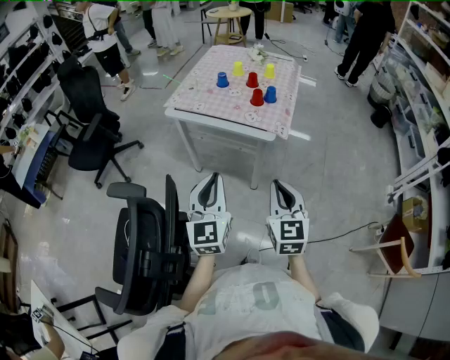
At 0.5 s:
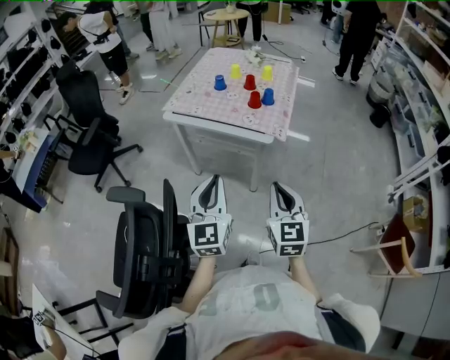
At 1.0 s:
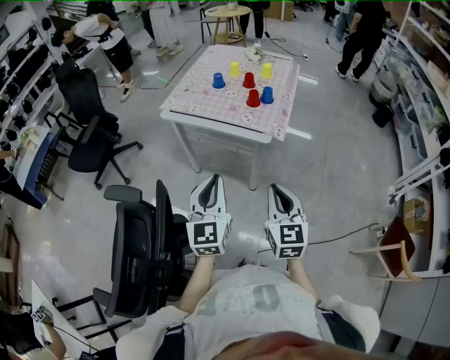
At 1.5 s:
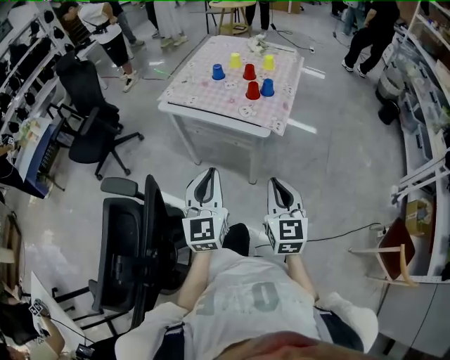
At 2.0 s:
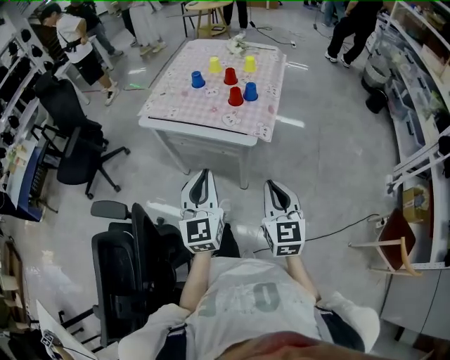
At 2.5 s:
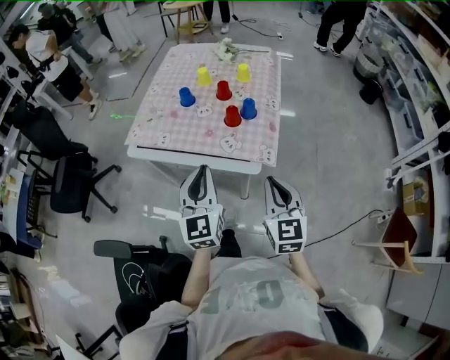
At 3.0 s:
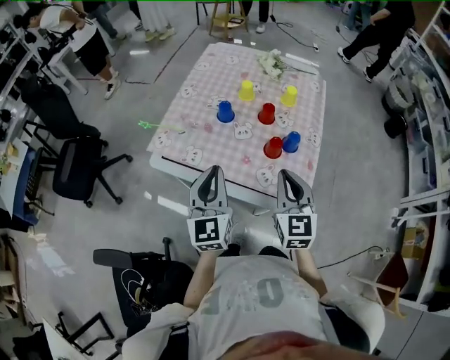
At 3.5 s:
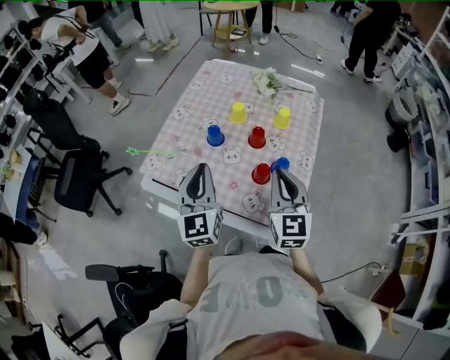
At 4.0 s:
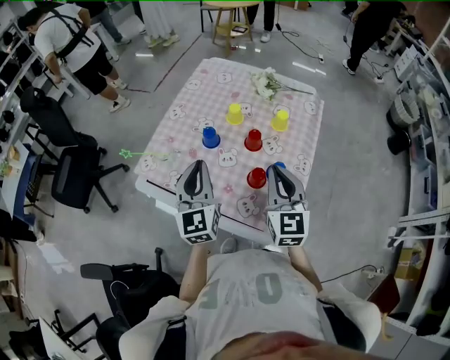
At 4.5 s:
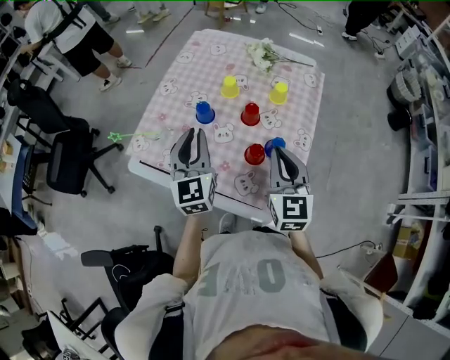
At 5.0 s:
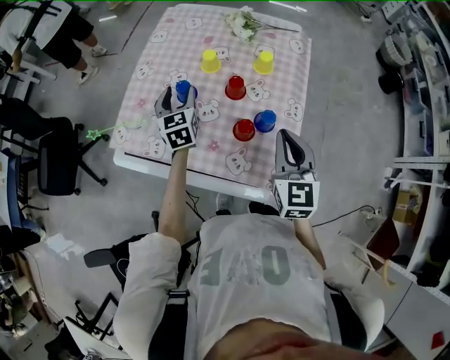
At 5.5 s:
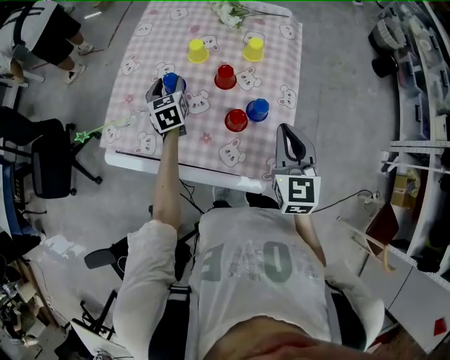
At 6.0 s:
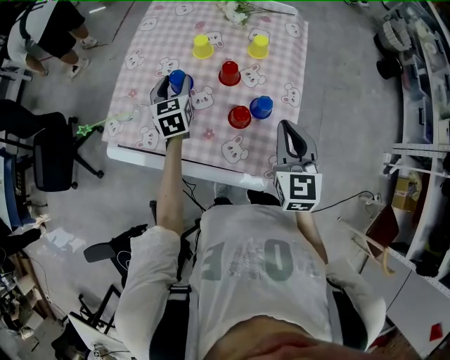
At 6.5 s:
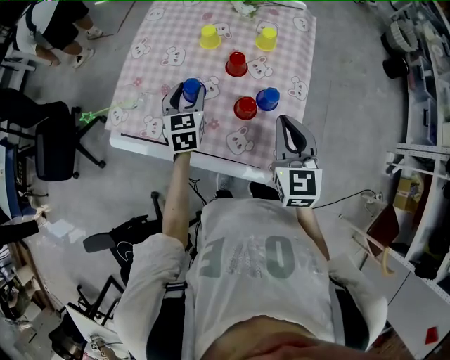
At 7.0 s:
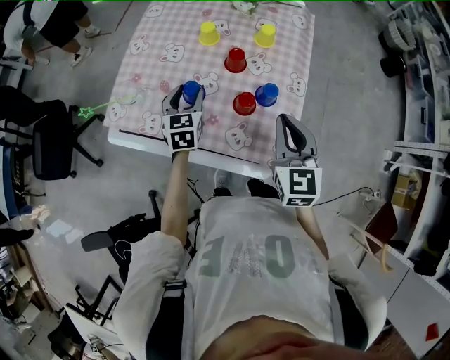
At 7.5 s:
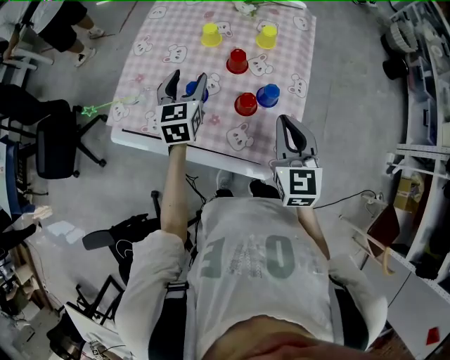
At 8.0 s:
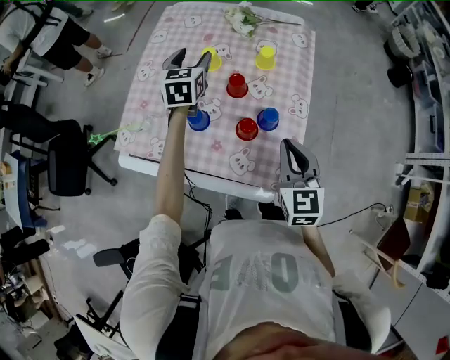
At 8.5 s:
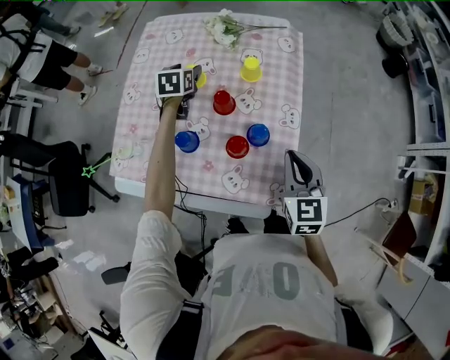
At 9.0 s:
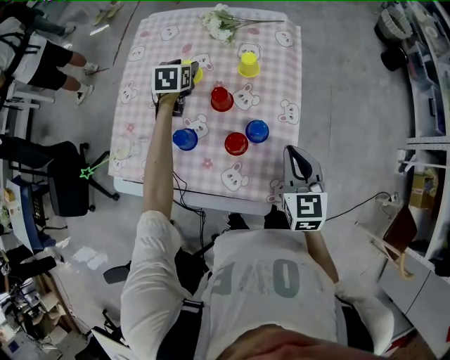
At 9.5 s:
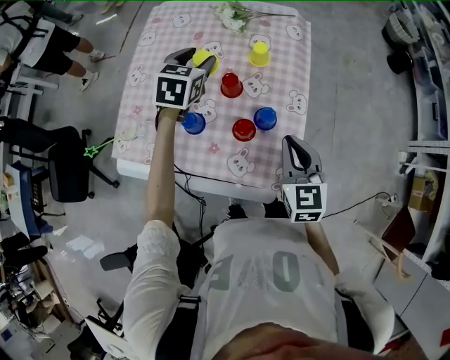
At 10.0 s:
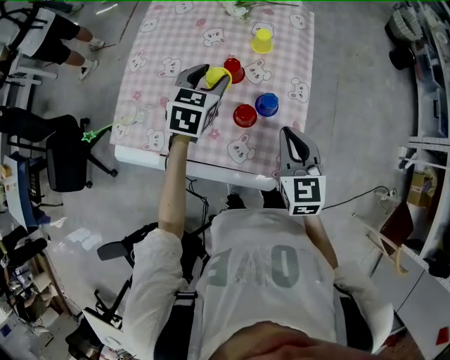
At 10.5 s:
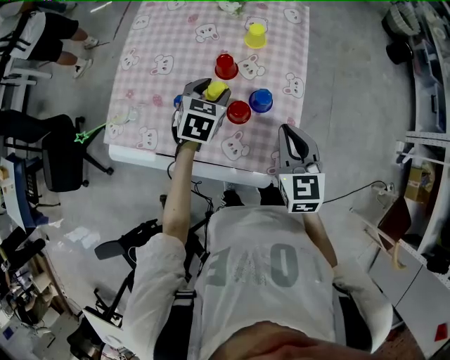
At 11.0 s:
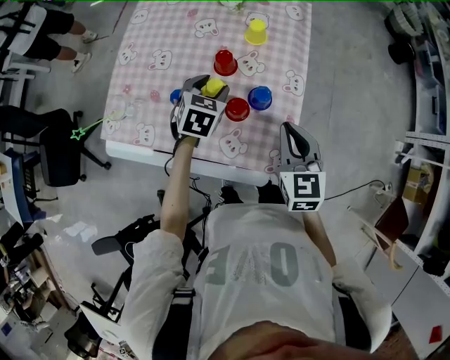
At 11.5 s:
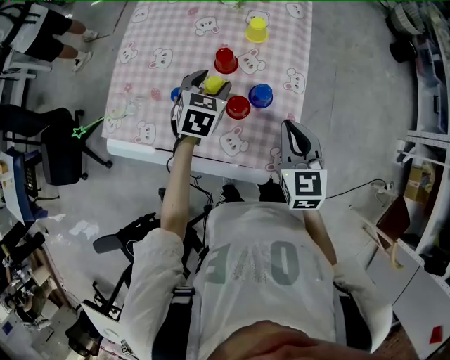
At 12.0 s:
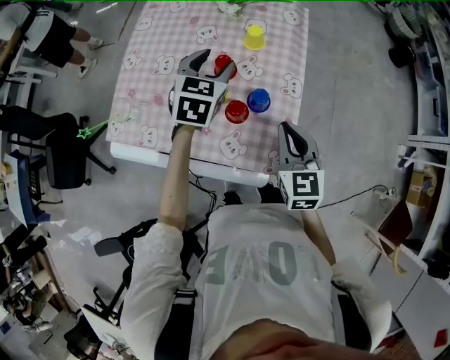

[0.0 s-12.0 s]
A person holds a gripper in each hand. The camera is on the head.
0.0 to 2.0 s: Both grippers move forward and to the right, about 10 cm.
2.0 to 4.0 s: Both grippers are carried forward, some 40 cm.
4.0 to 6.0 s: The right gripper moves to the right, some 5 cm. The left gripper travels forward and downward by roughly 20 cm, swivels some 30 degrees, and opens its fingers.
6.0 to 8.0 s: The left gripper travels forward, upward and to the right by some 10 cm.
8.0 to 10.0 s: The left gripper goes approximately 15 cm backward and to the right, and turns by about 20 degrees.
10.0 to 12.0 s: The left gripper moves some 10 cm downward and comes back.

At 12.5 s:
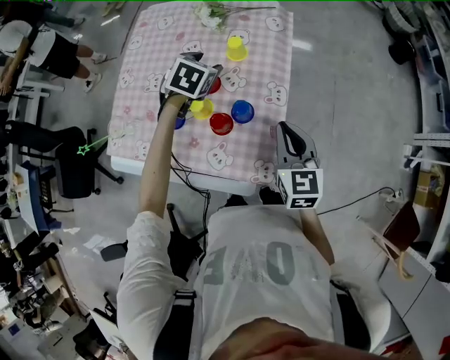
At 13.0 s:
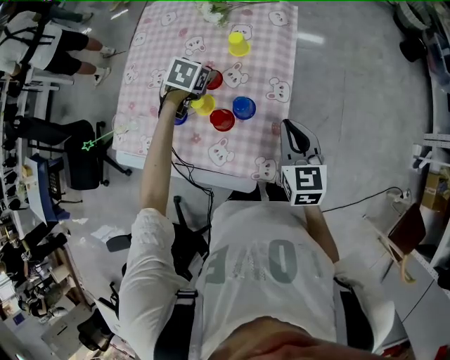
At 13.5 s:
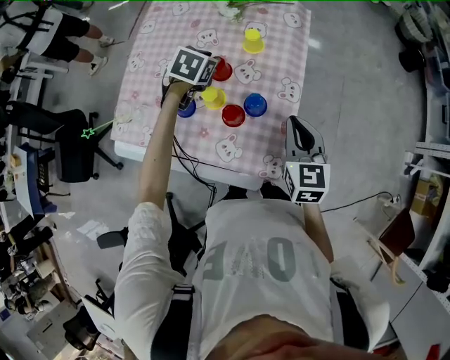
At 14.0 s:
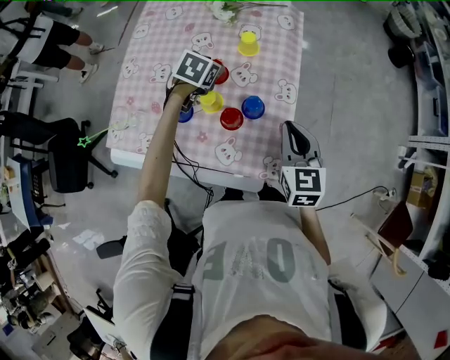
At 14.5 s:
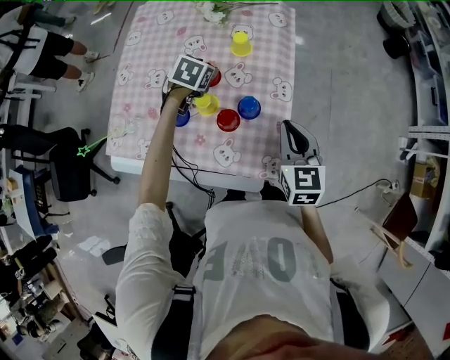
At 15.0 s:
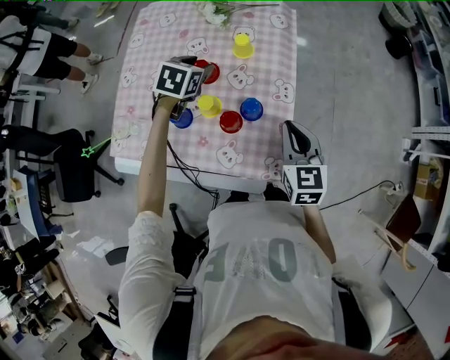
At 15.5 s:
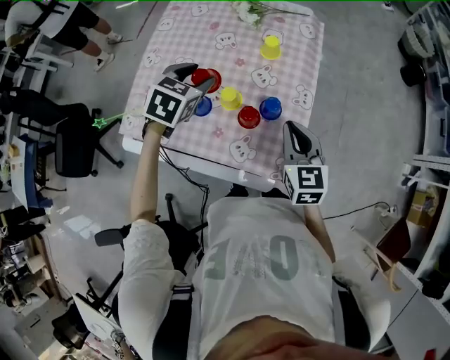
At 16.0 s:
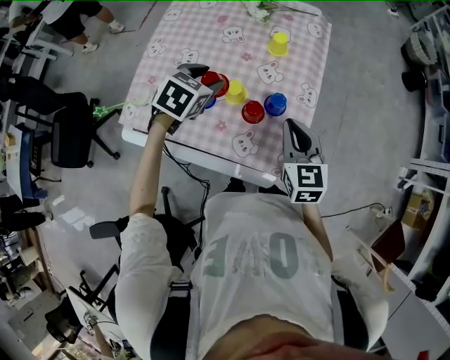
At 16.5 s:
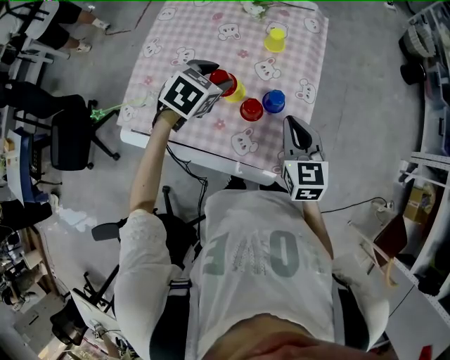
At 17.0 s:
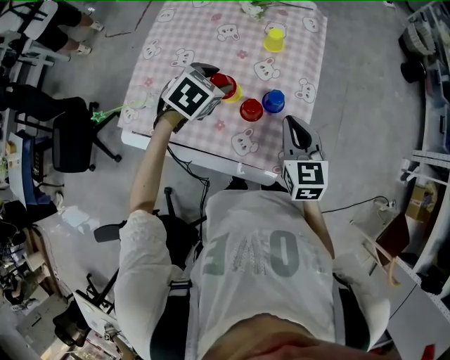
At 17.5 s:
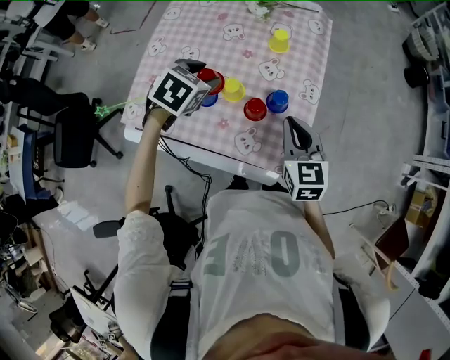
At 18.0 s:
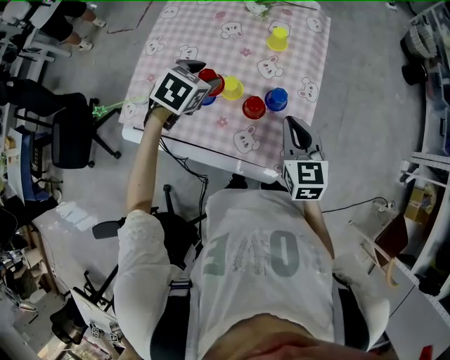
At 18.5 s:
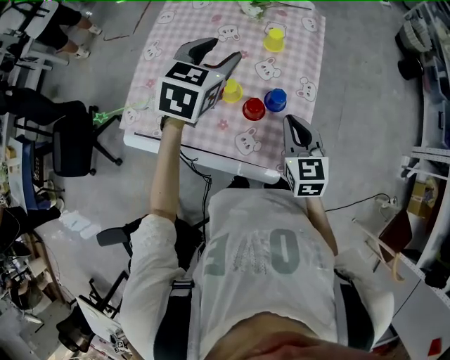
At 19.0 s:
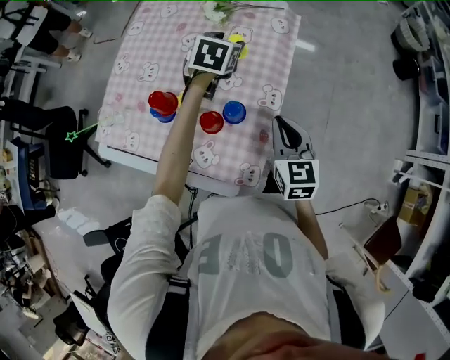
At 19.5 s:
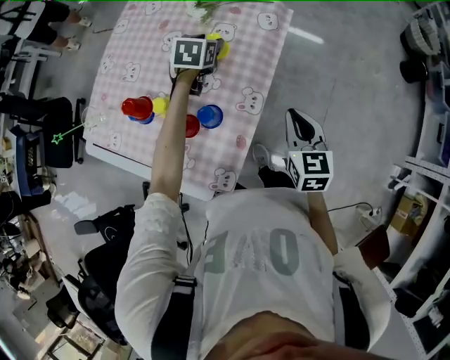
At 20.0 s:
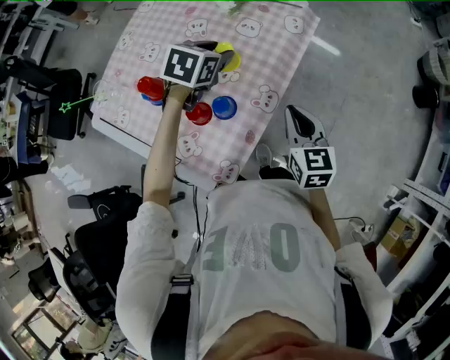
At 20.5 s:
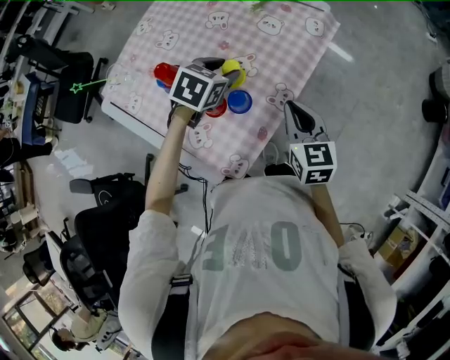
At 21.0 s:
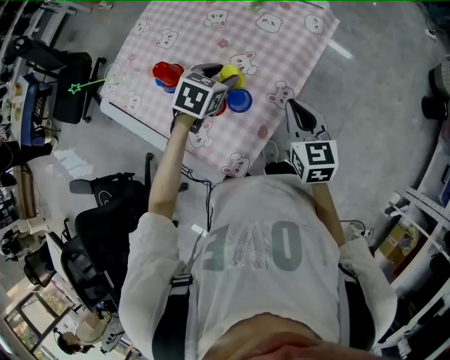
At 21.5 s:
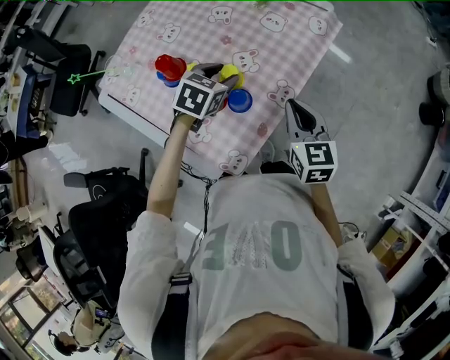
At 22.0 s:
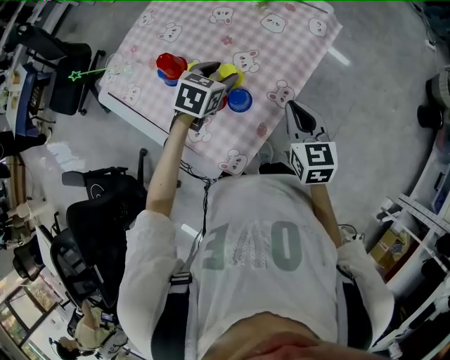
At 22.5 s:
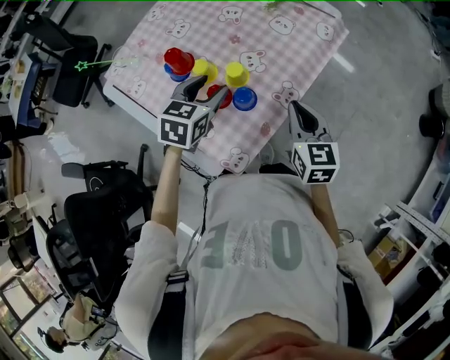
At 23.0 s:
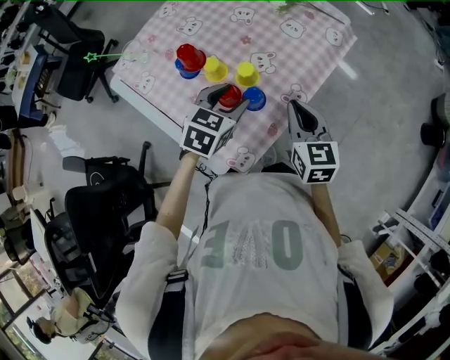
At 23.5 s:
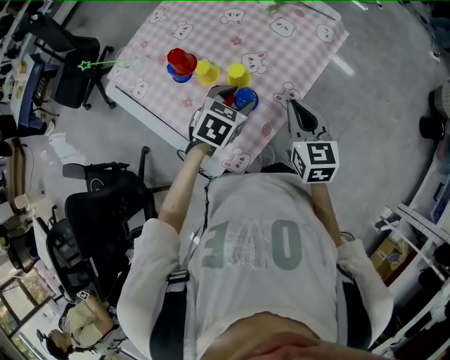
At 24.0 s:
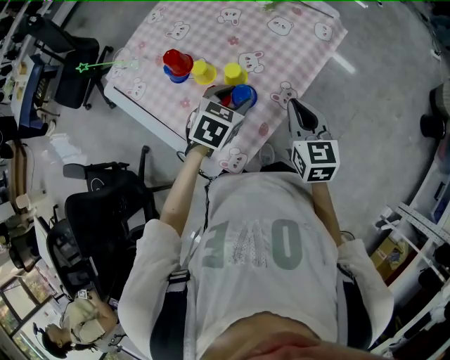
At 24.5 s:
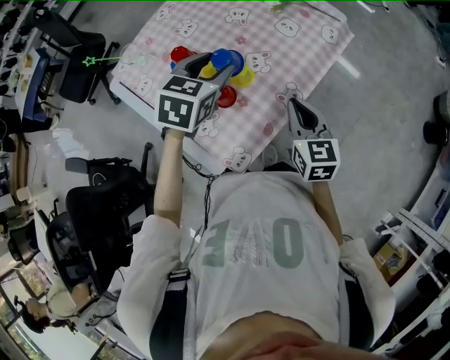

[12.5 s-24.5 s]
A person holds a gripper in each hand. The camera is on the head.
12.5 to 14.5 s: The left gripper travels downward by some 5 cm, and closes, then reopens.
14.5 to 16.5 s: The right gripper travels to the left by about 5 cm; the left gripper goes roughly 15 cm backward and upward.
16.5 to 18.5 s: The left gripper travels upward by approximately 10 cm, and rotates roughly 20 degrees.
18.5 to 20.5 s: The right gripper goes approximately 15 cm to the right and forward, and swivels approximately 20 degrees. Meanwhile the left gripper goes approximately 20 cm downward and to the right, and swivels approximately 30 degrees.
20.5 to 22.5 s: The left gripper is displaced backward by roughly 10 cm.
22.5 to 24.5 s: The left gripper is displaced upward by some 5 cm.

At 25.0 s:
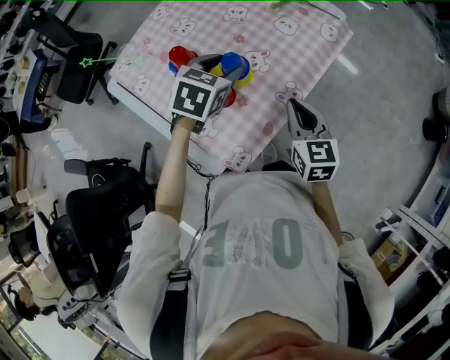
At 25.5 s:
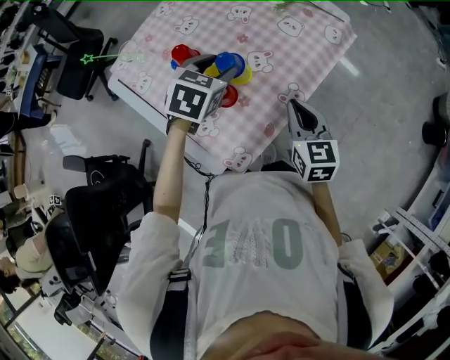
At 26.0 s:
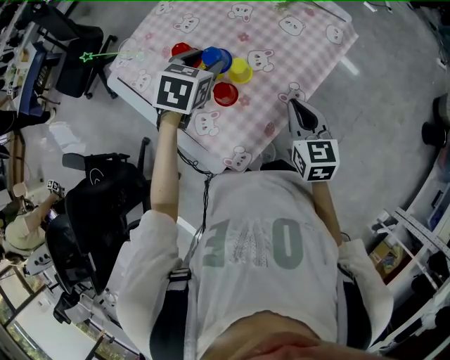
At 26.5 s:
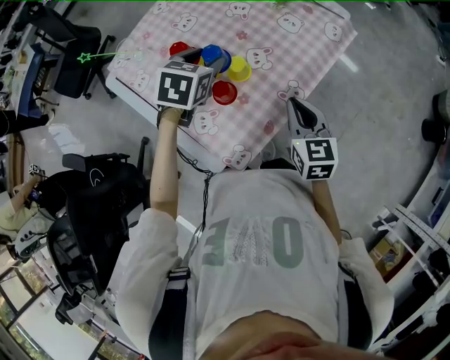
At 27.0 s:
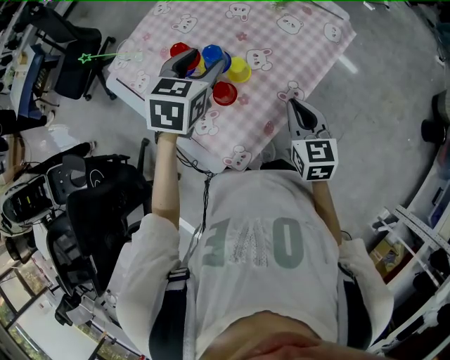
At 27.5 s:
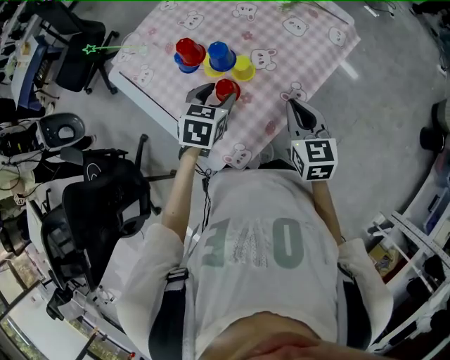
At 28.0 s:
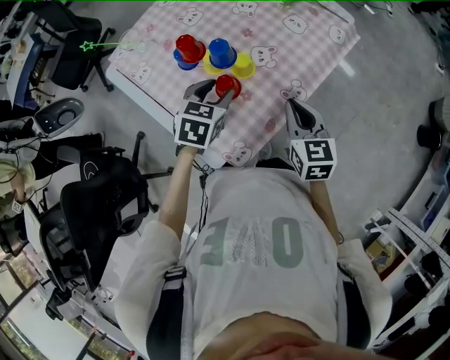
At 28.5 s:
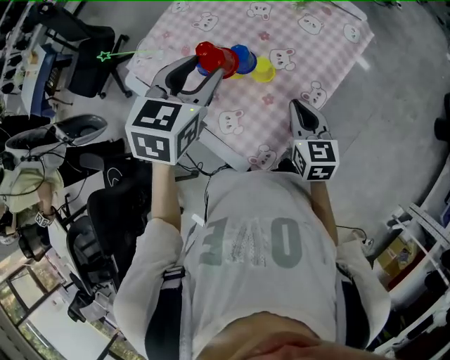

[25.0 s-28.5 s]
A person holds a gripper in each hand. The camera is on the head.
25.0 to 27.0 s: The left gripper shifts by about 5 cm.
27.0 to 28.5 s: The right gripper moves to the left, roughly 5 cm; the left gripper shifts approximately 5 cm upward.
